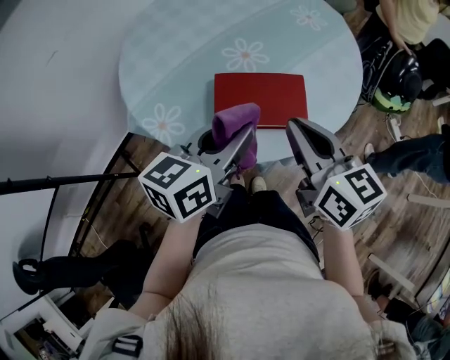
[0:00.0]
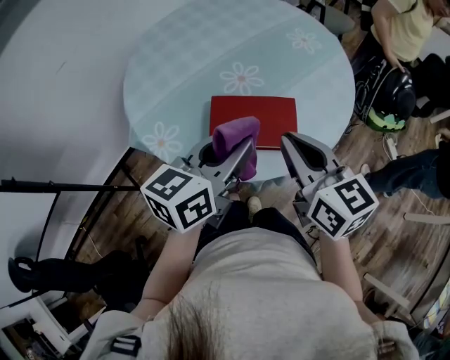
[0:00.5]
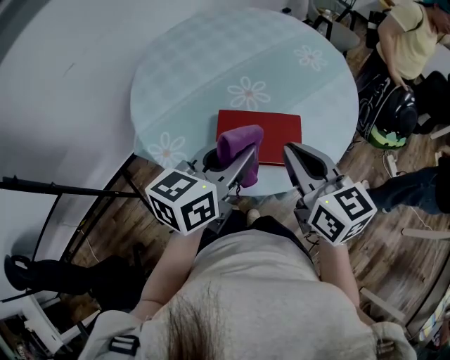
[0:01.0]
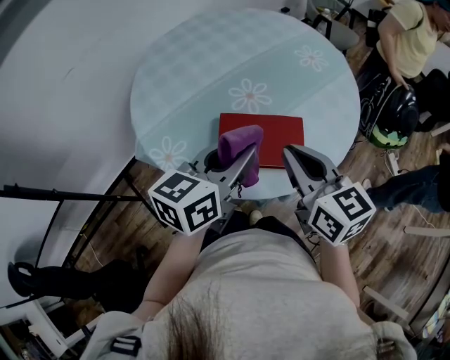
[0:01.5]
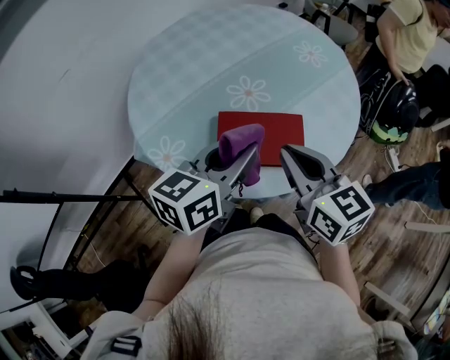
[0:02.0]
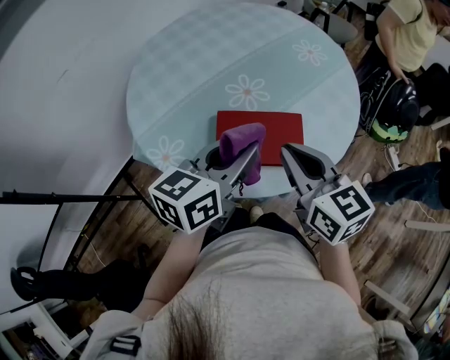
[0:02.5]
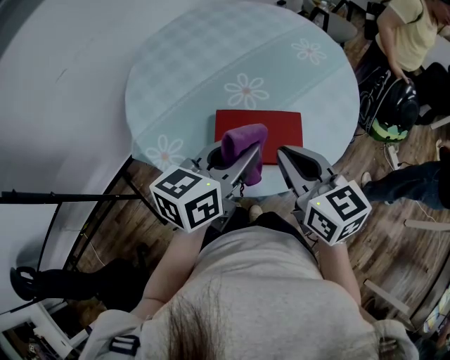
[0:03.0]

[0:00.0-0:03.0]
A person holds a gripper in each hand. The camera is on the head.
0:00.0 to 0:03.0: The grippers make only small movements.

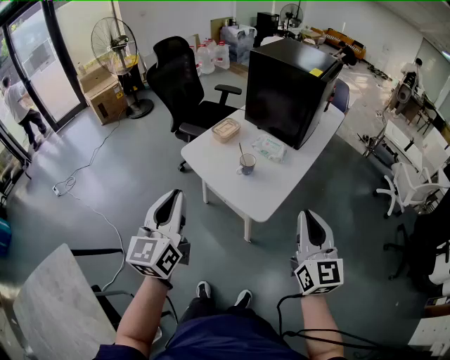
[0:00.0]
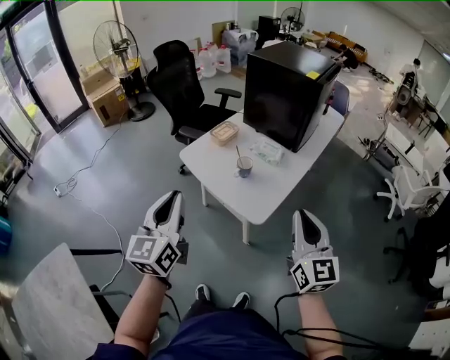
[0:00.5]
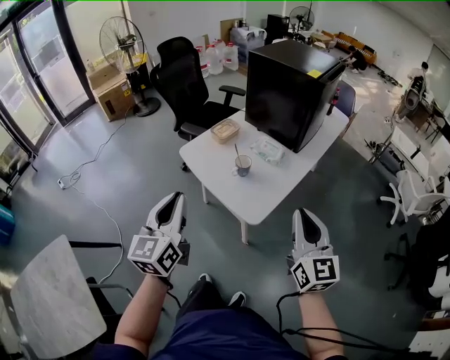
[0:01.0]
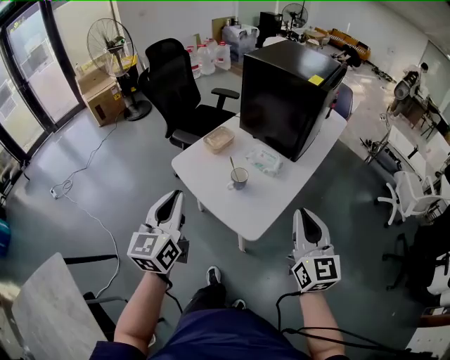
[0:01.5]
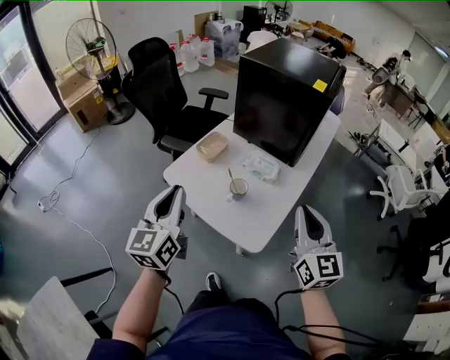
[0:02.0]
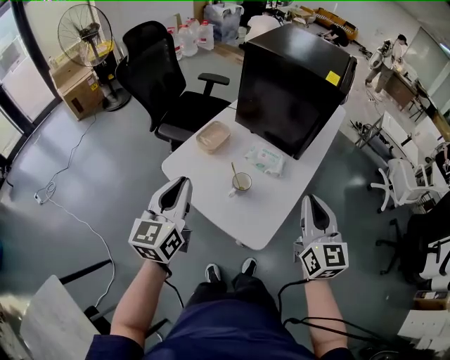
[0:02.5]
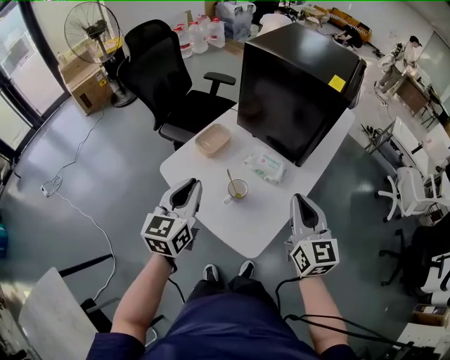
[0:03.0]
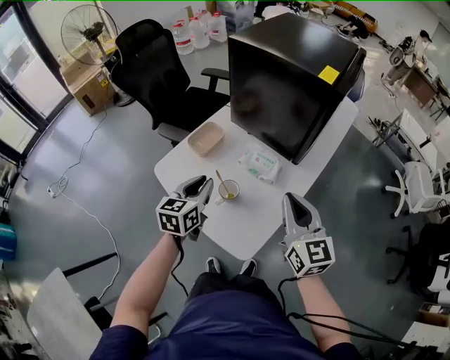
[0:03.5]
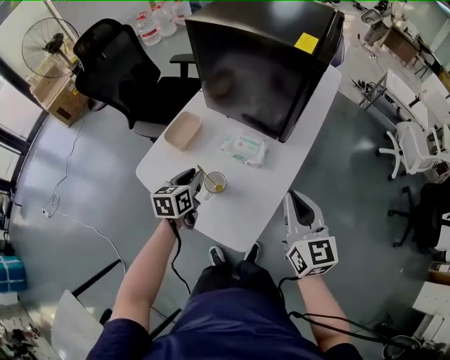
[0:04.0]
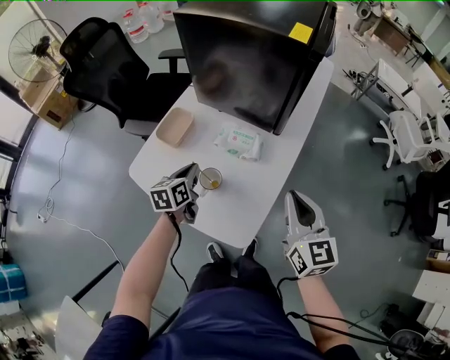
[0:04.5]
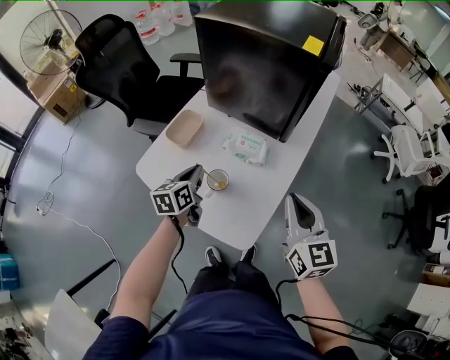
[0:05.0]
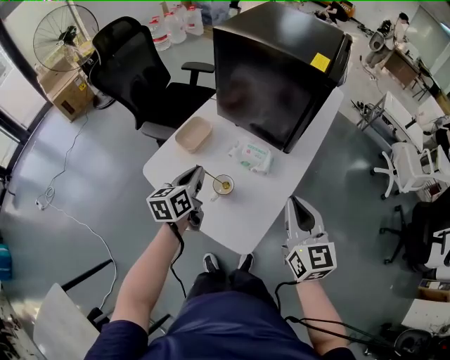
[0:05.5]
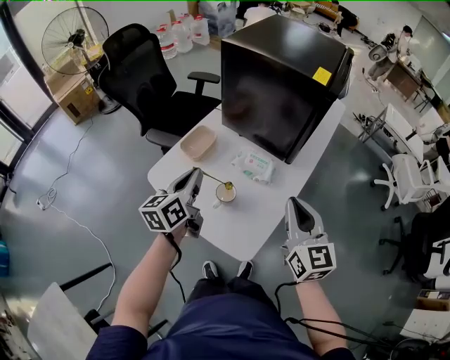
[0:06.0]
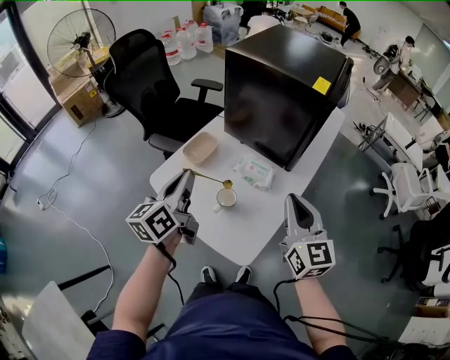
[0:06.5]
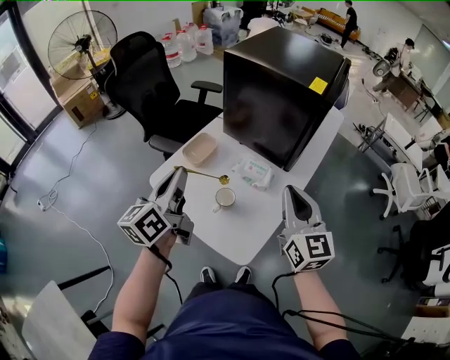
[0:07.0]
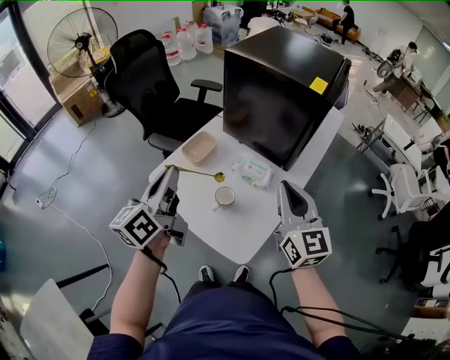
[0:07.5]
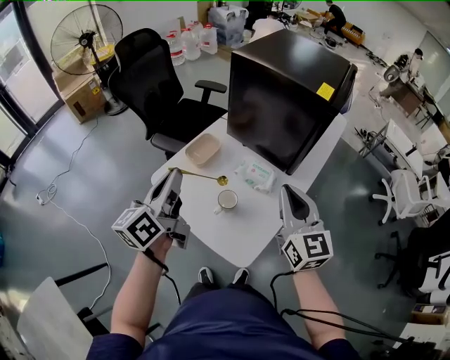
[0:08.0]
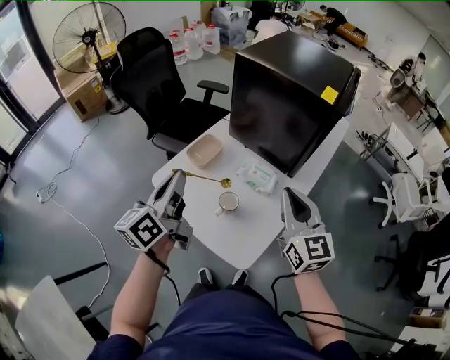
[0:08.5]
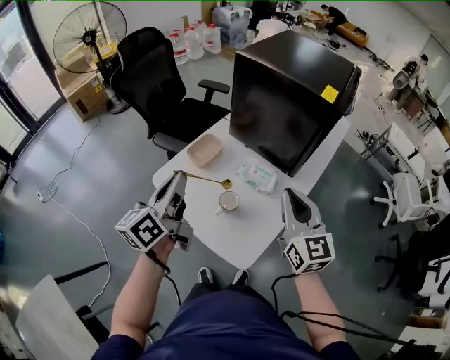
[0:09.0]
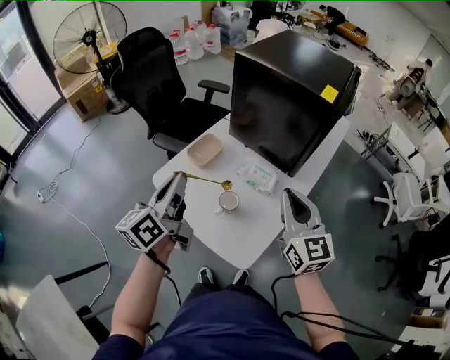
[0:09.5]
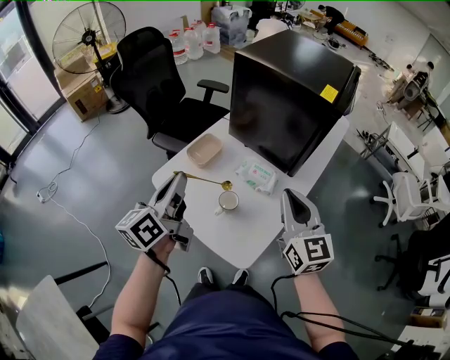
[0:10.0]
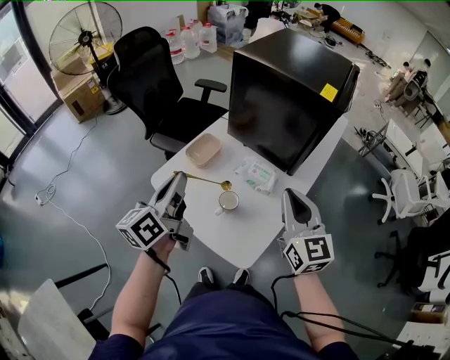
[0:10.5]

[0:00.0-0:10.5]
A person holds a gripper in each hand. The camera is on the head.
0:00.0 to 0:02.0: Both grippers travel together forward, about 15 cm.
0:02.0 to 0:04.0: The left gripper shifts about 35 cm downward, forward and to the right, and points its fingers approximately 30 degrees further downward. The right gripper heads forward, downward and to the right, covering about 15 cm.
0:04.0 to 0:06.5: The right gripper travels upward by roughly 5 cm, while the left gripper goes roughly 20 cm upward, and rotates roughly 30 degrees.
0:06.5 to 0:08.5: The left gripper ends up about 5 cm from where it was.
0:08.5 to 0:10.5: The grippers move only a little.

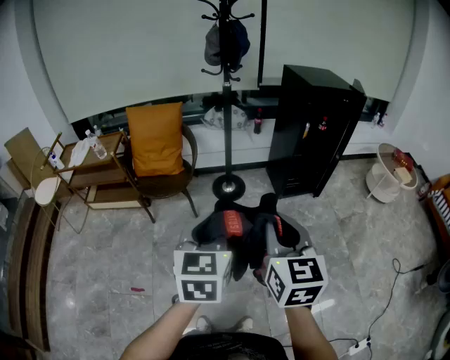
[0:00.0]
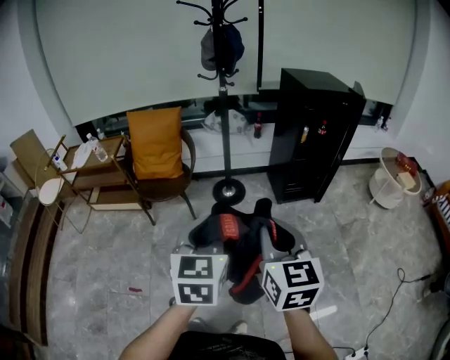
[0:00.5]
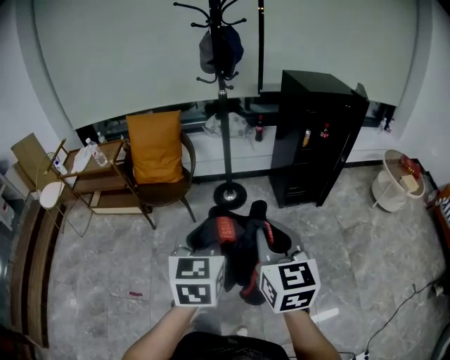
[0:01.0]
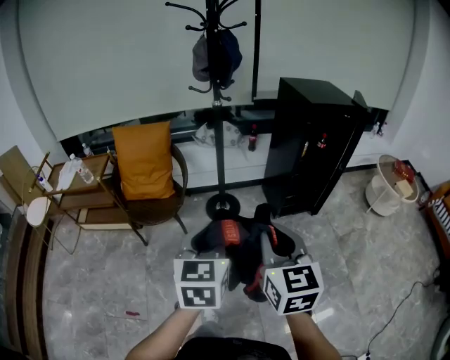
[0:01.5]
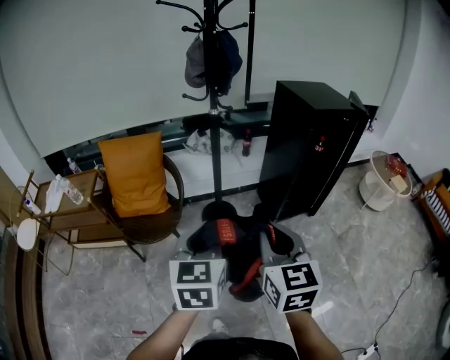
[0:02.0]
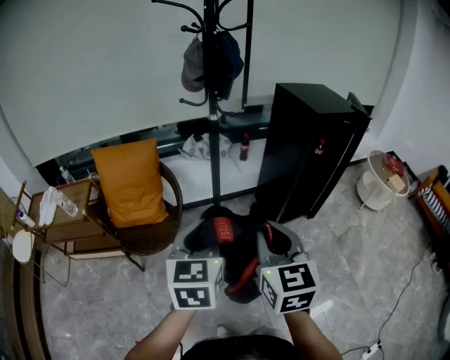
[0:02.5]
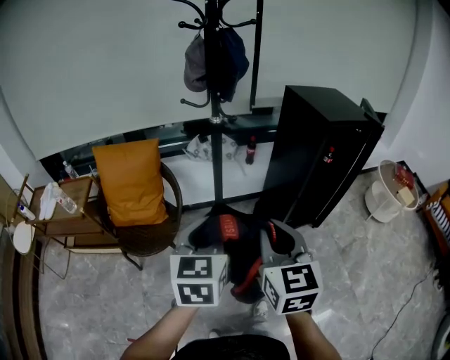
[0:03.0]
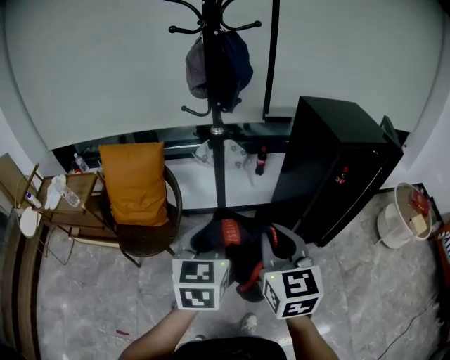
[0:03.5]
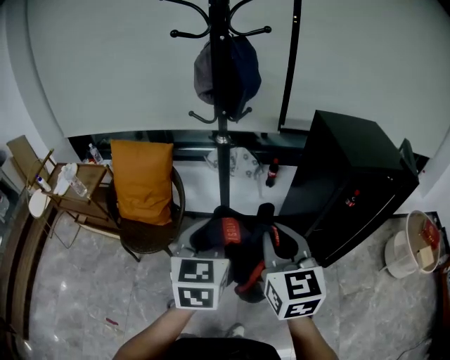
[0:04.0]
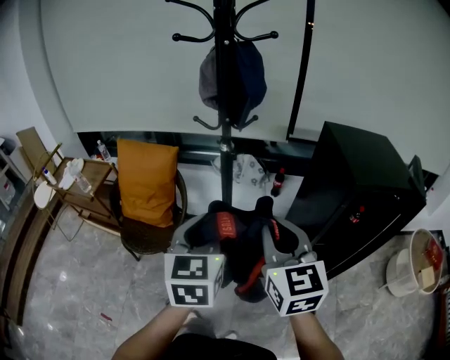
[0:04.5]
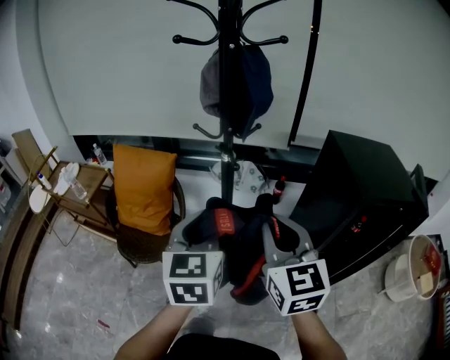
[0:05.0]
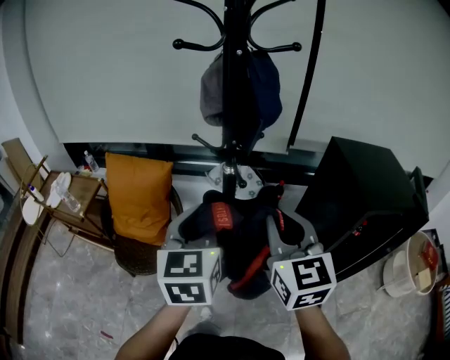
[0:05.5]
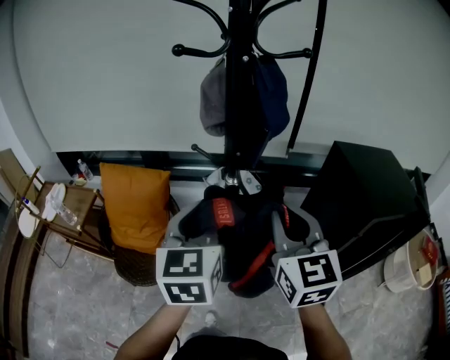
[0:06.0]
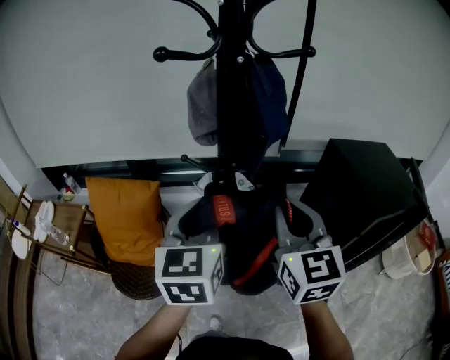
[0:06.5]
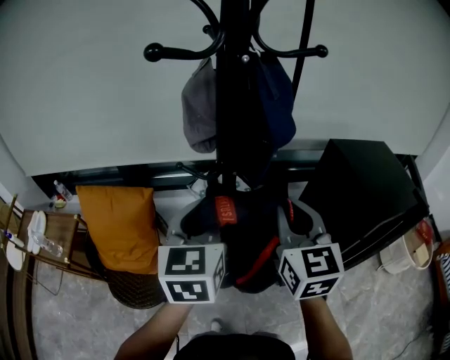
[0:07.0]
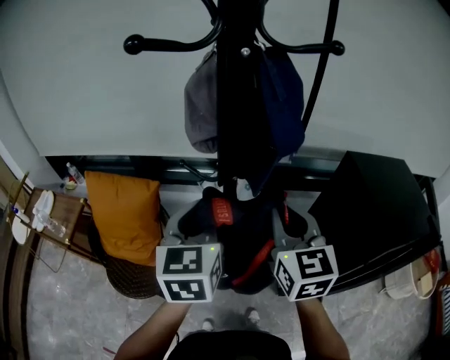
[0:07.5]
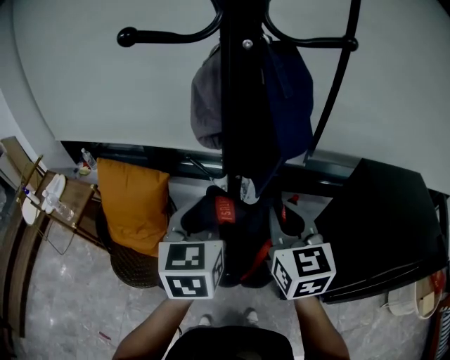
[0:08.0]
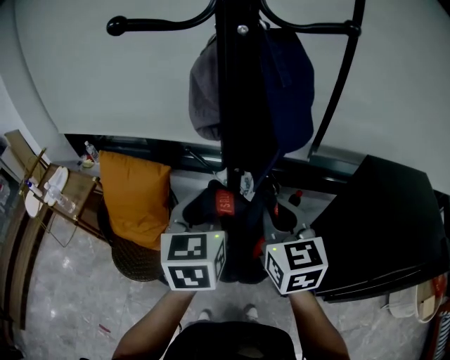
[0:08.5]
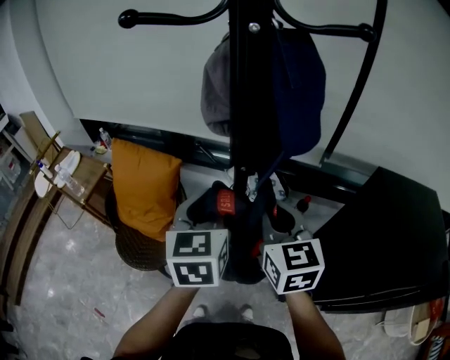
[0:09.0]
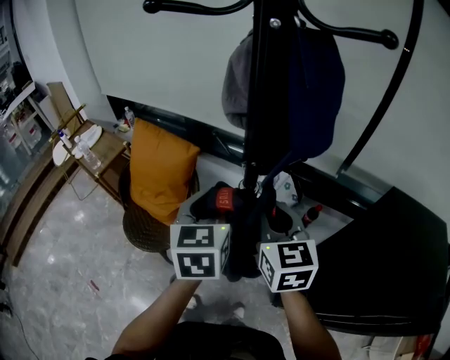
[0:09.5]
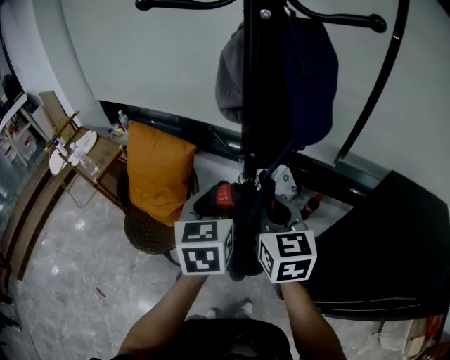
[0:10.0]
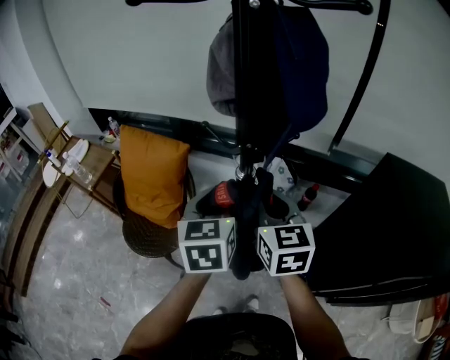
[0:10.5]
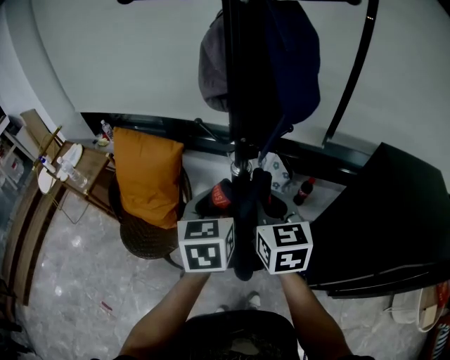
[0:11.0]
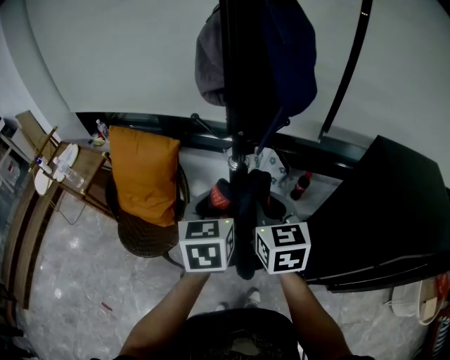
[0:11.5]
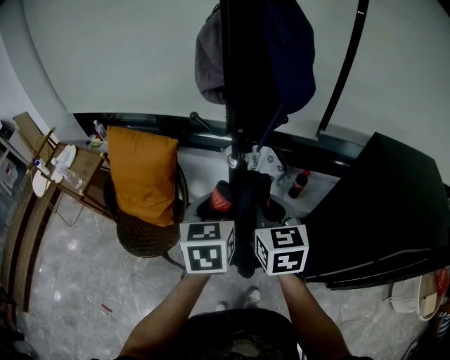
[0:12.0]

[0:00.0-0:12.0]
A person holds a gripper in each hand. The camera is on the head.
0:00.0 to 0:02.0: Both grippers travel together forward, some 20 cm.
0:02.0 to 0:04.0: Both grippers travel together forward and to the right, some 25 cm.
0:04.0 to 0:06.0: The grippers both shift forward by about 20 cm.
0:06.0 to 0:08.0: The right gripper travels forward and downward by some 15 cm, while the left gripper travels forward by about 10 cm.
0:08.0 to 0:10.0: The grippers both shift downward by some 5 cm.
0:10.0 to 0:12.0: The grippers both shift downward by approximately 5 cm.

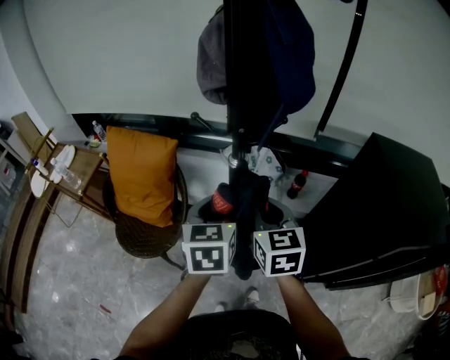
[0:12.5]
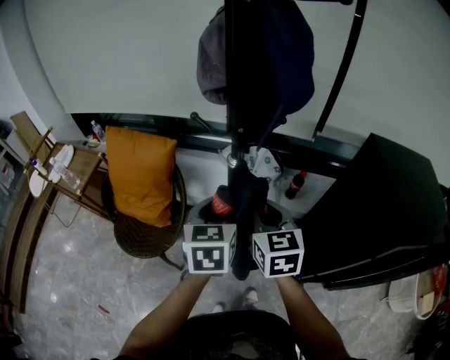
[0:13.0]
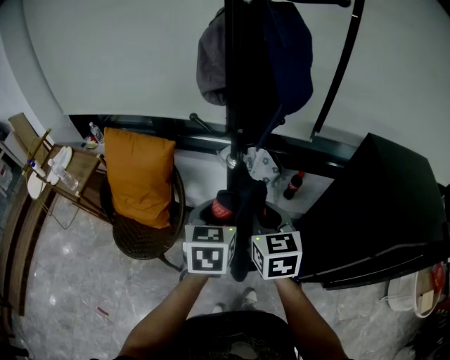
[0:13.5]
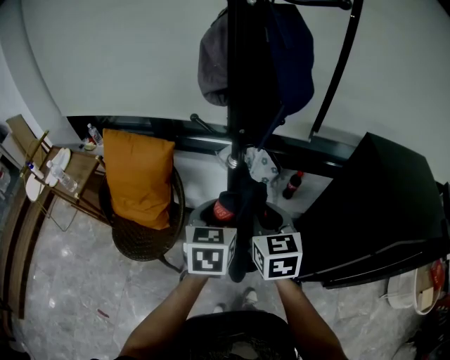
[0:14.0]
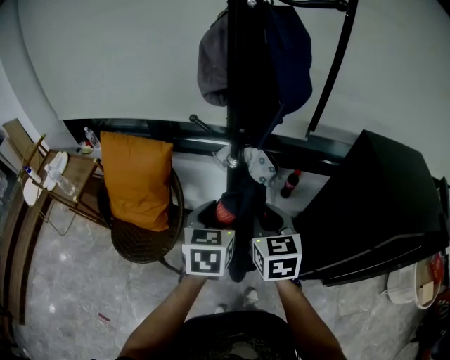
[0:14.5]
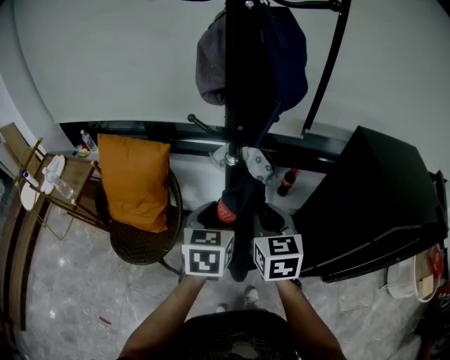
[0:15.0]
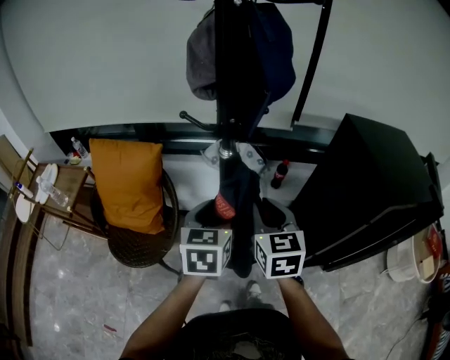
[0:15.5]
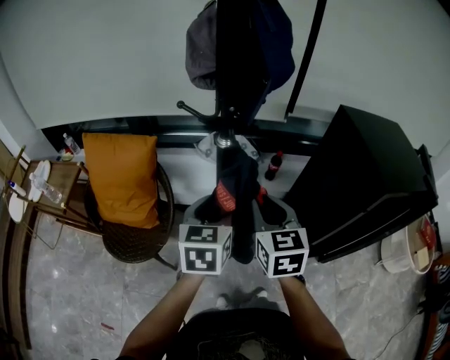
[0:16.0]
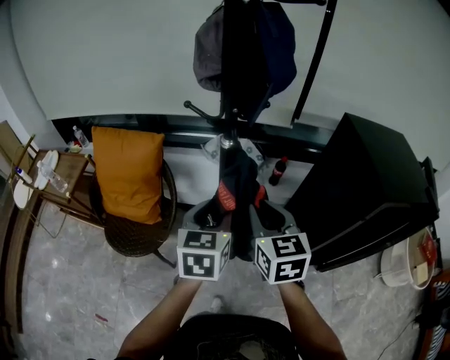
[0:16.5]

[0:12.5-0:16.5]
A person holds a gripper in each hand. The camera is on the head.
0:12.5 to 0:14.5: The left gripper opens up.
0:14.5 to 0:16.5: The two grippers go approximately 5 cm backward.
